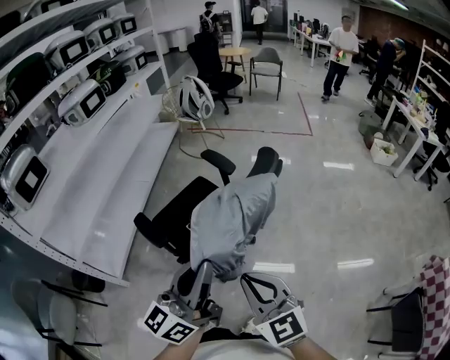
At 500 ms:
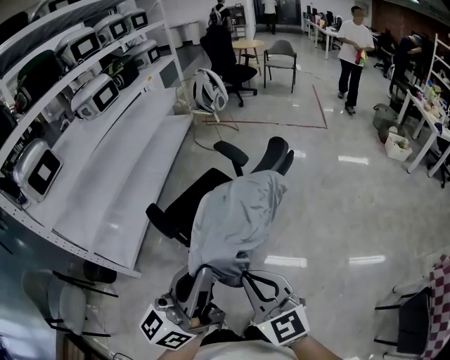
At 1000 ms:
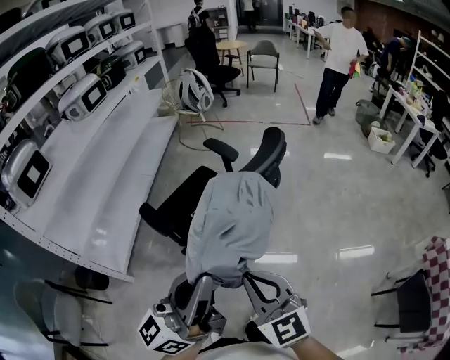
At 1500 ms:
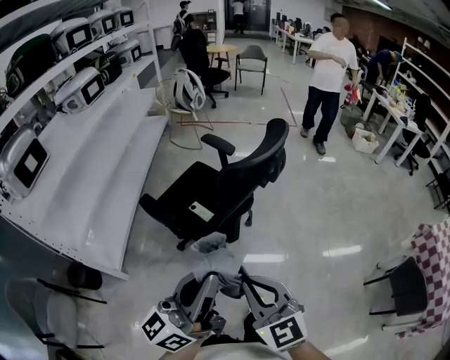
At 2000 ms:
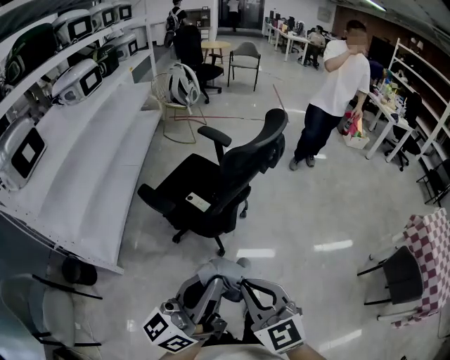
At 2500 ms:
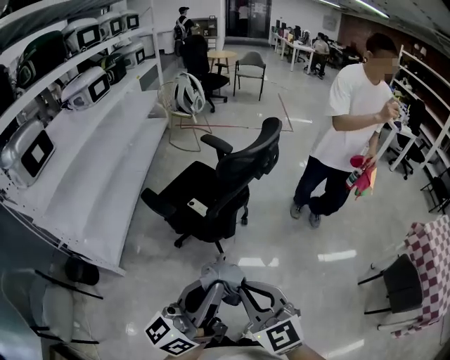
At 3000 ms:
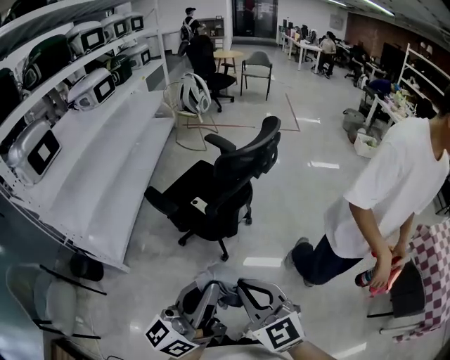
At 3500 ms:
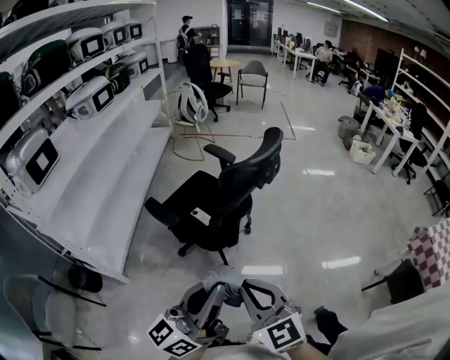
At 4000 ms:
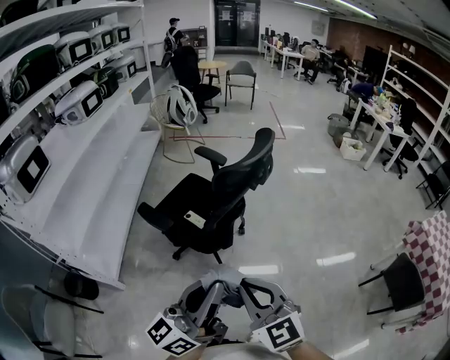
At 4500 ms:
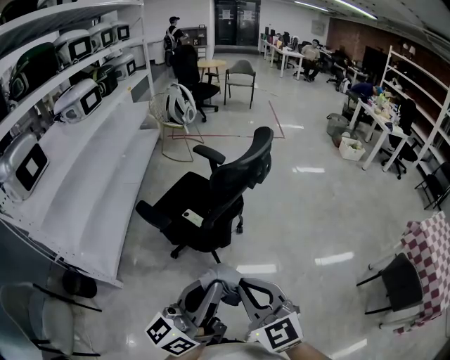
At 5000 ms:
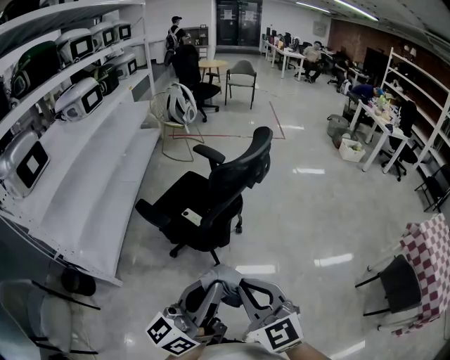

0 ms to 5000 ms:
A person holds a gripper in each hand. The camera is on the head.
0 ms to 2500 ms: The left gripper is displaced backward by some 25 cm. The right gripper travels backward and to the left by some 25 cm.
2500 ms to 5000 ms: The grippers make only small movements.

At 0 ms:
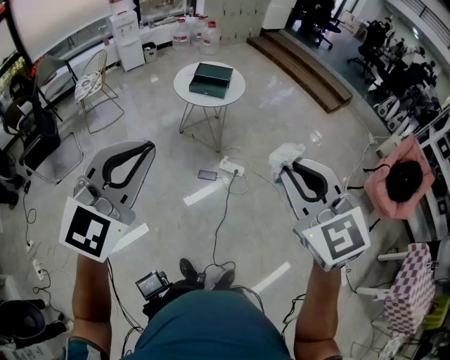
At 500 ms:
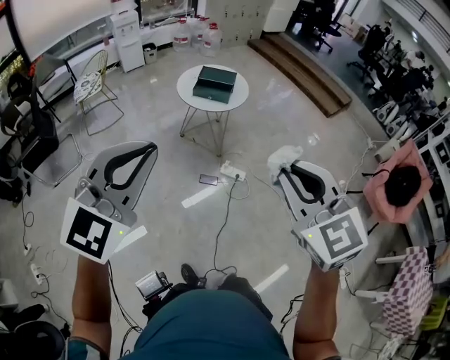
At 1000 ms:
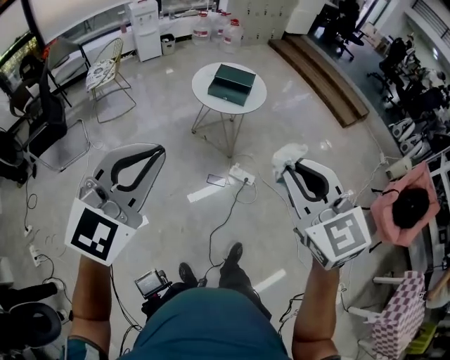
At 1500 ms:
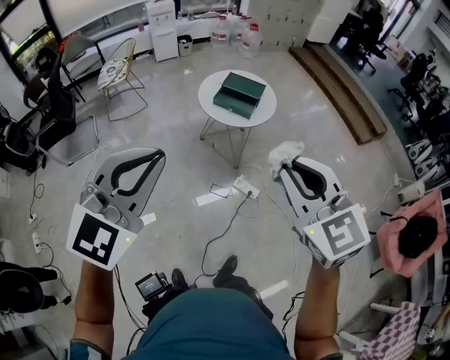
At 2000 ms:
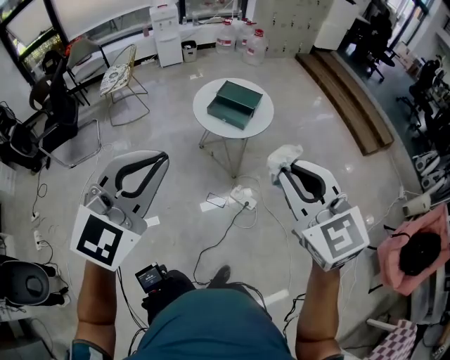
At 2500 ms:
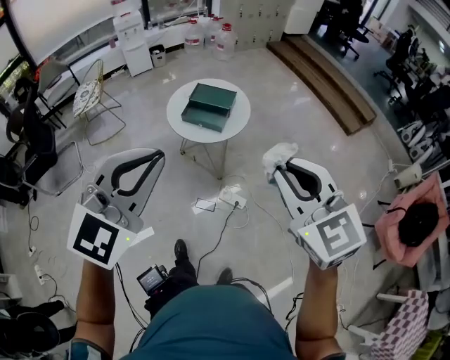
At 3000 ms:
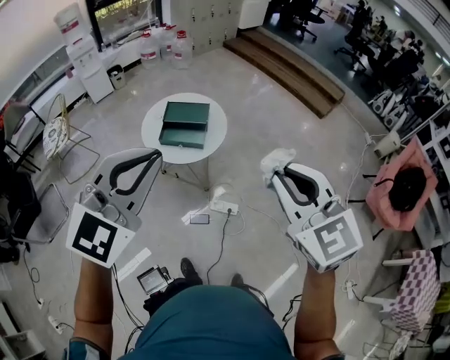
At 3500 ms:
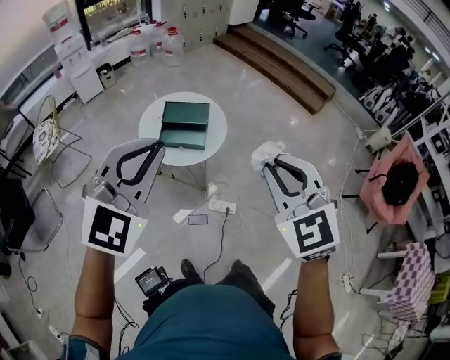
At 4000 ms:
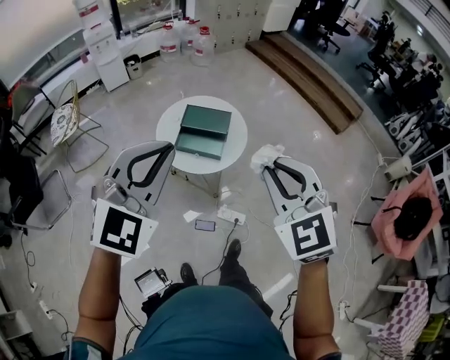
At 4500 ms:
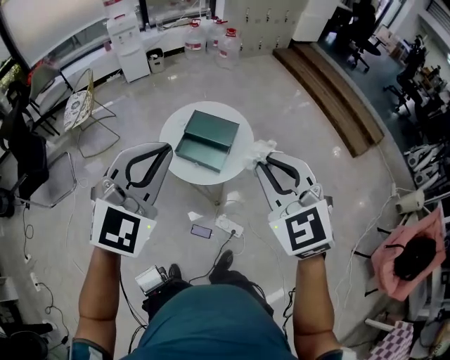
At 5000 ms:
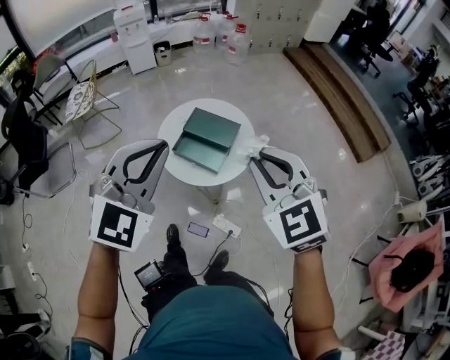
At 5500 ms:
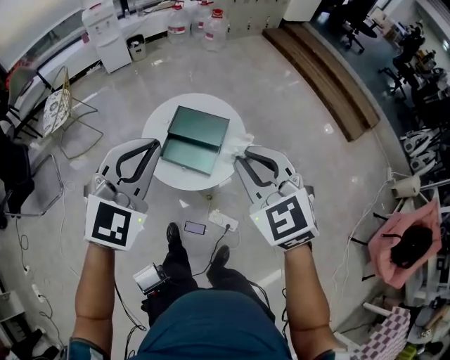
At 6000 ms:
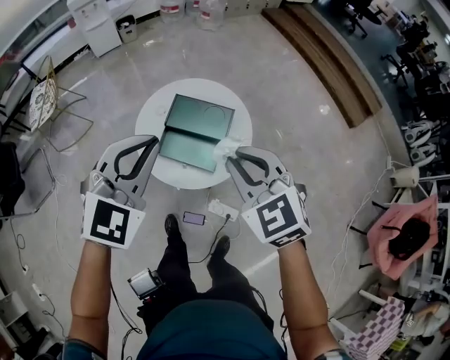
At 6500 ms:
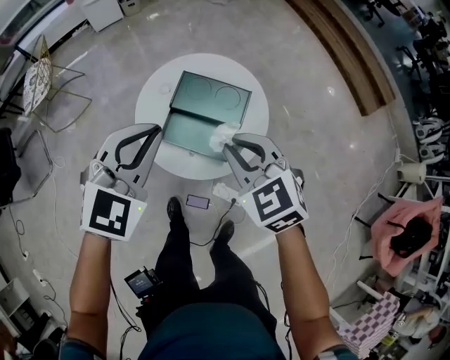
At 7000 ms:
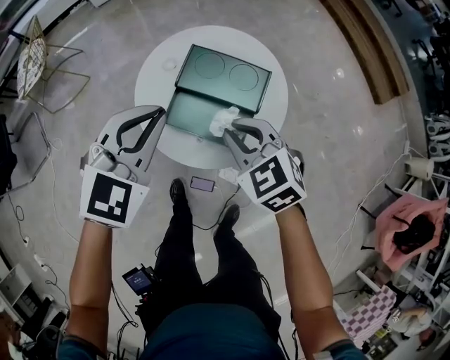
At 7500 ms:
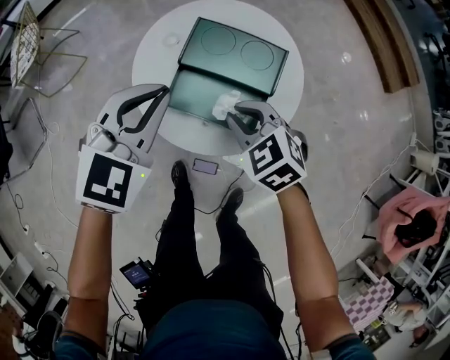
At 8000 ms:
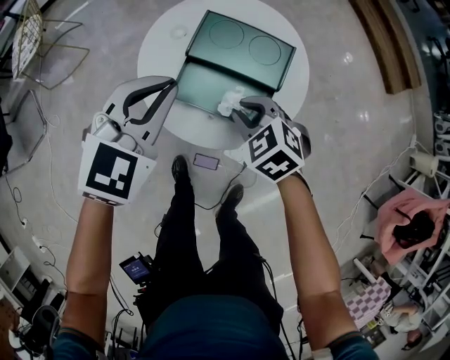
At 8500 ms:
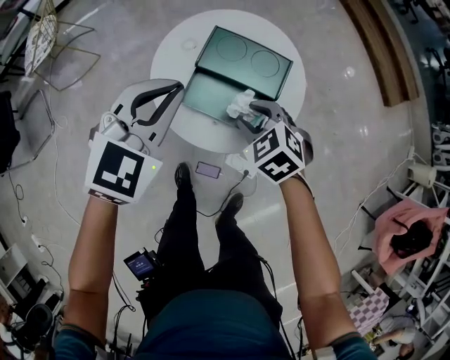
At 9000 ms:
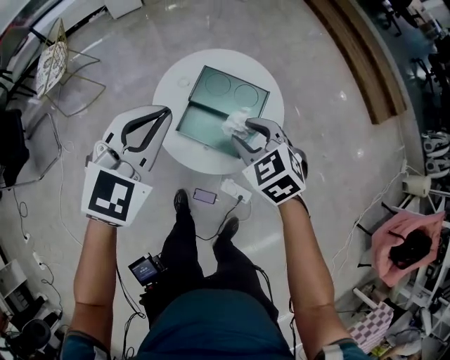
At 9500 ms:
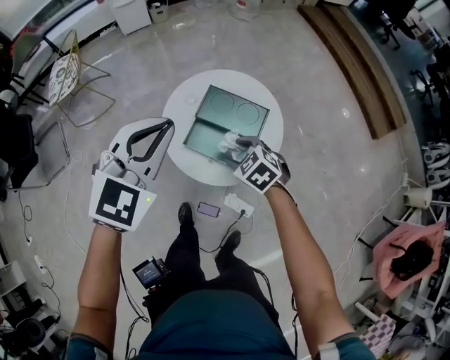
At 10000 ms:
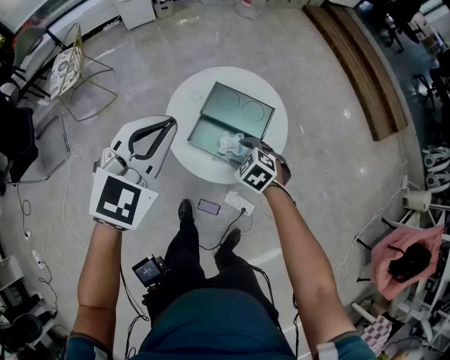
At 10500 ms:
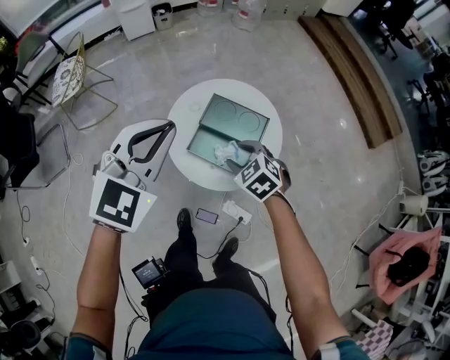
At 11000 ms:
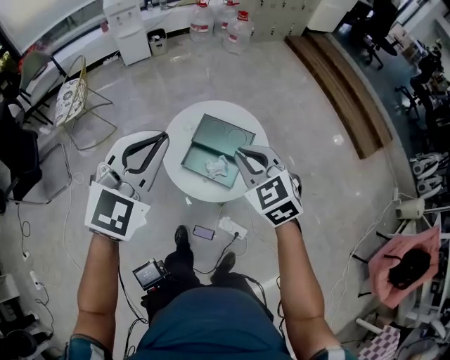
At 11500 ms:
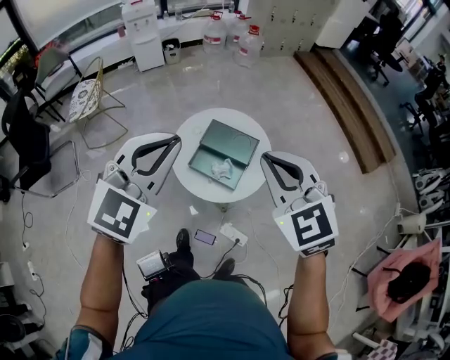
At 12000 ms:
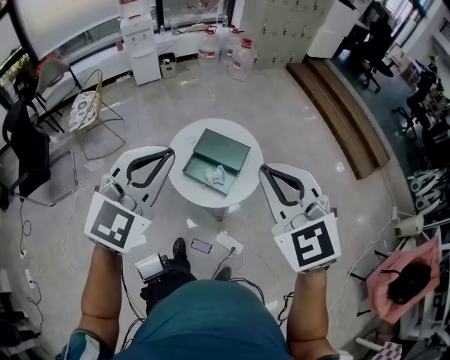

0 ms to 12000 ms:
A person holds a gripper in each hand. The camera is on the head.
0 ms to 2000 ms: The left gripper is displaced forward and to the right by roughly 35 cm. Meanwhile the right gripper goes roughly 40 cm forward.
2000 ms to 4000 ms: The right gripper changes place by approximately 35 cm, and changes its angle by roughly 30 degrees. Meanwhile the left gripper changes place by about 40 cm.
4000 ms to 6000 ms: Both grippers travel together forward and downward, roughly 40 cm.
6000 ms to 8000 ms: The right gripper shifts approximately 40 cm downward, and turns by some 30 degrees. Meanwhile the left gripper goes about 35 cm downward and forward.
8000 ms to 10000 ms: The right gripper heads upward, covering approximately 10 cm, and opens its fingers; the left gripper moves upward, about 25 cm.
10000 ms to 12000 ms: The right gripper heads upward and backward, covering about 50 cm, angles its fingers upward, by approximately 40 degrees, and closes. The left gripper shifts about 30 cm upward and backward.

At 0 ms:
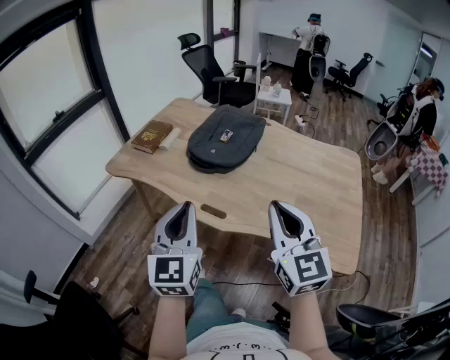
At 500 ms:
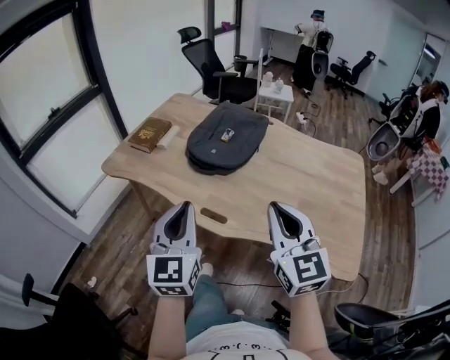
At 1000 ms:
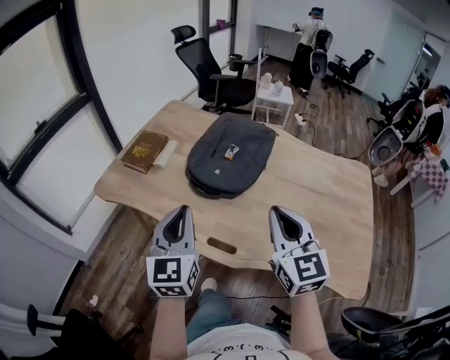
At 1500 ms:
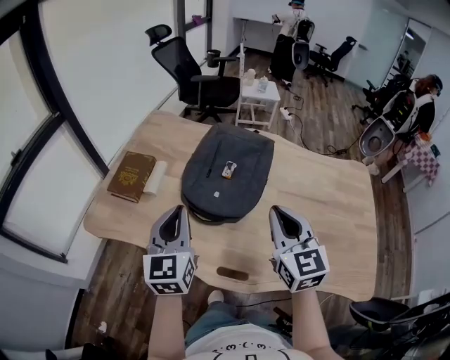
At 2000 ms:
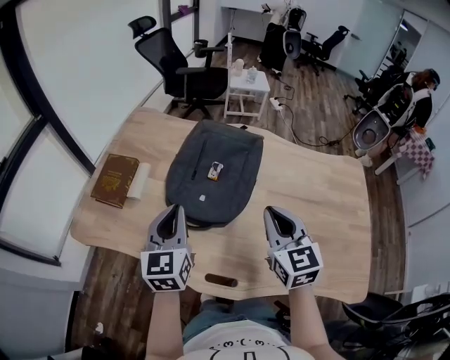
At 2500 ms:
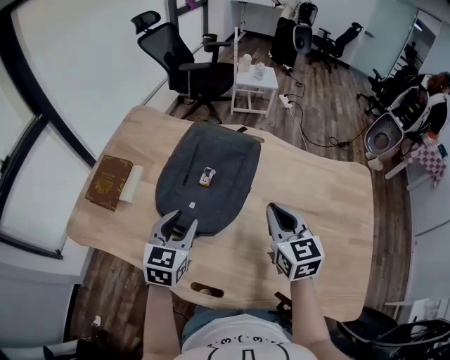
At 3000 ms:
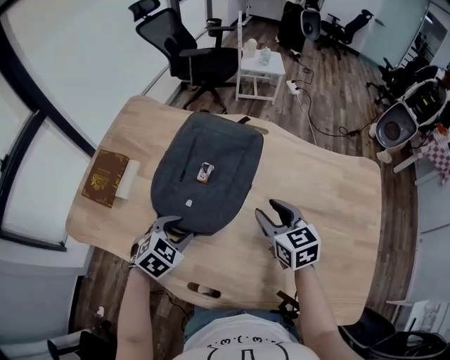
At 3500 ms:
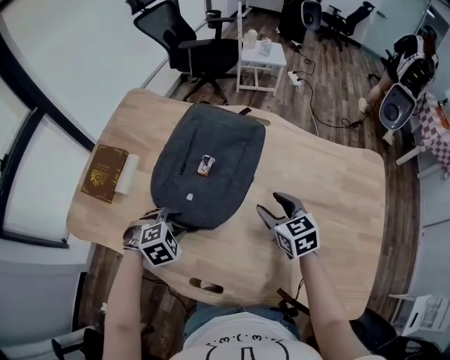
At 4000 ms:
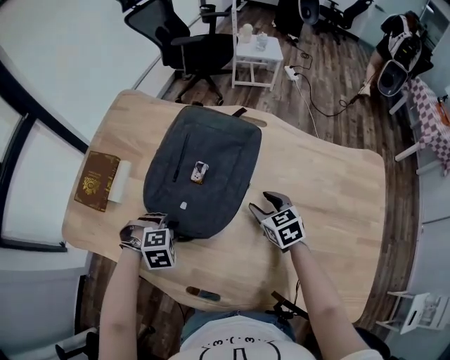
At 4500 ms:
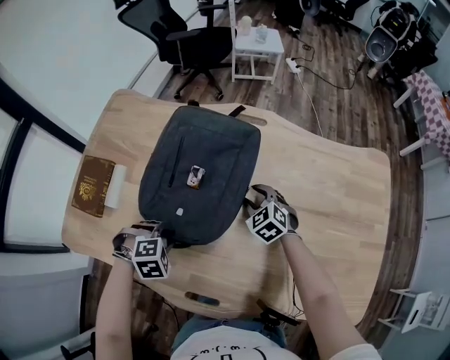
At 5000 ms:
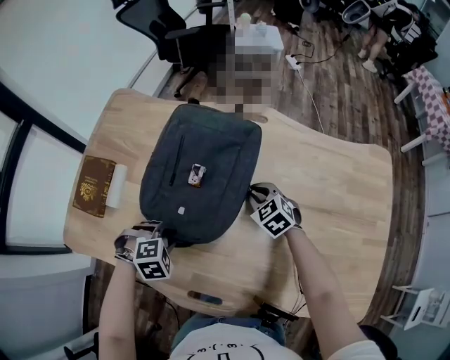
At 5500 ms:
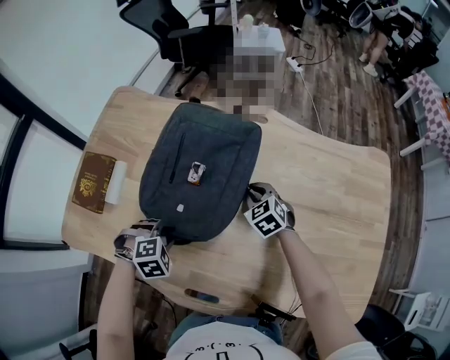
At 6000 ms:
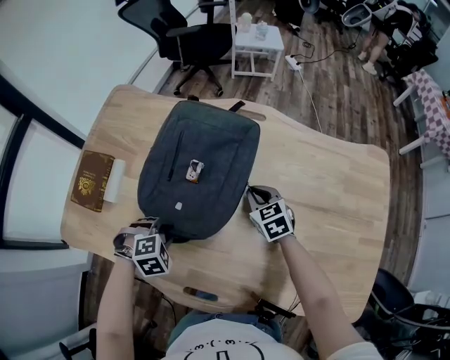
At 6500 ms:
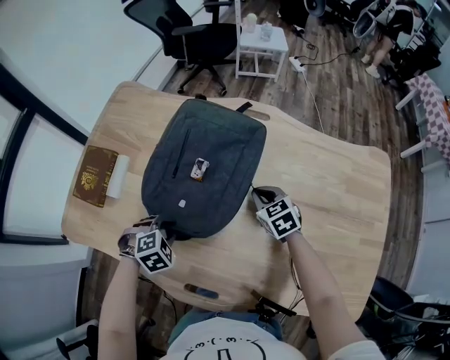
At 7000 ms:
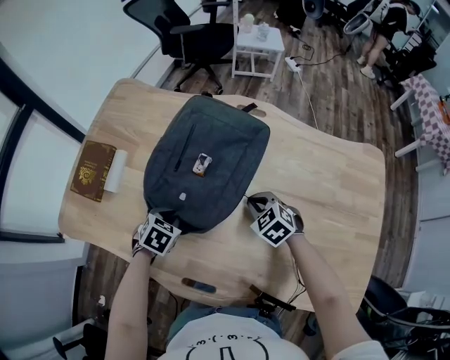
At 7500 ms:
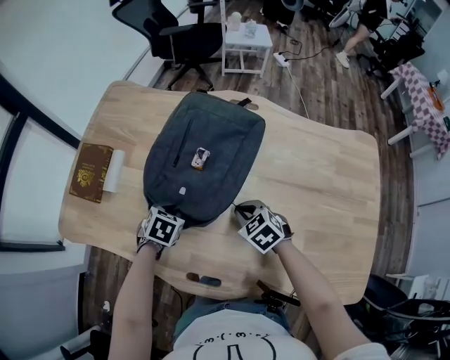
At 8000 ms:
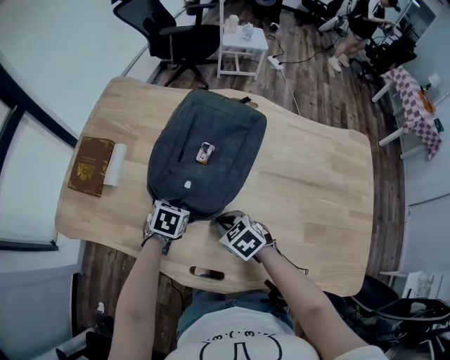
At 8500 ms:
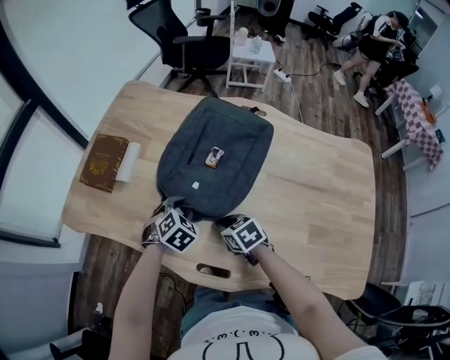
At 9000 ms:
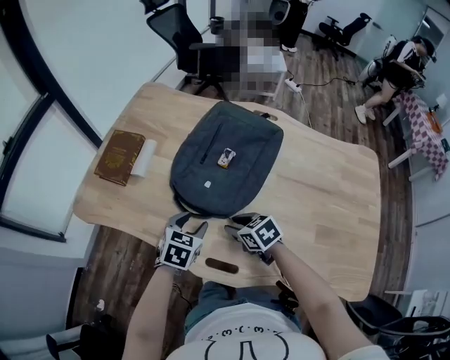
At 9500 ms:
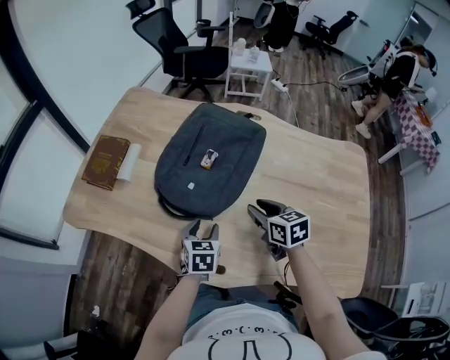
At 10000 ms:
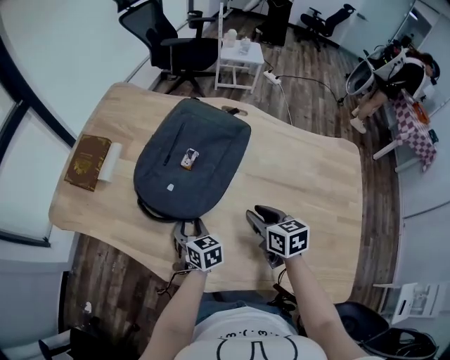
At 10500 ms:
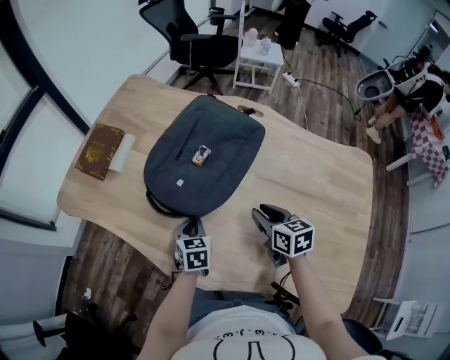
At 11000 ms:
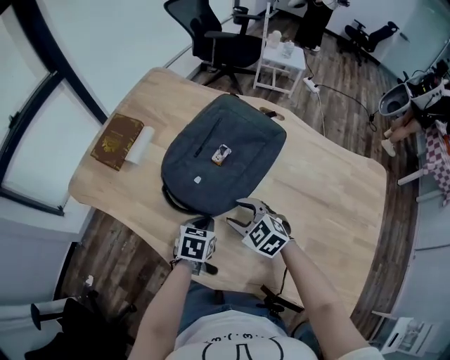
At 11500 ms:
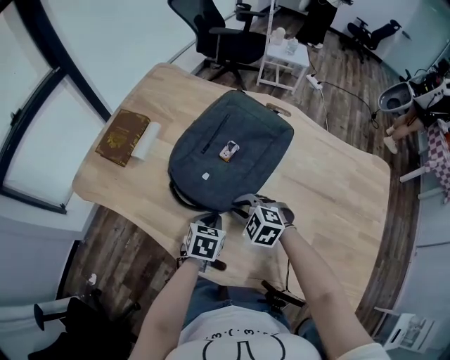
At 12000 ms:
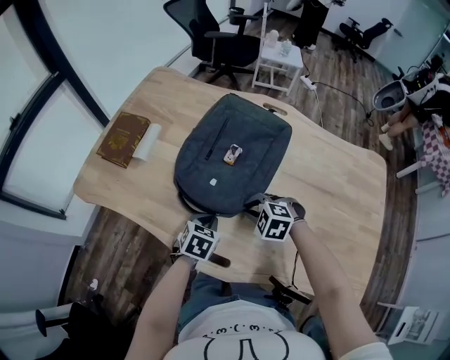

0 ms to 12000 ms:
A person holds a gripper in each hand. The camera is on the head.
0 ms to 2000 ms: The grippers both shift forward by about 35 cm.
2000 ms to 4000 ms: Both grippers move downward, about 25 cm. The left gripper tilts its fingers roughly 70 degrees downward, and opens its fingers. Meanwhile the right gripper rotates about 30 degrees, and opens its fingers.
4000 ms to 6000 ms: The right gripper closes its fingers.
6000 ms to 8000 ms: The left gripper rotates around the line of its fingers by roughly 50 degrees, counterclockwise from behind. Meanwhile the right gripper changes place by approximately 20 cm, and changes its angle by approximately 20 degrees.
8000 ms to 10000 ms: The right gripper travels to the right and upward by roughly 15 cm, and changes its angle by approximately 30 degrees; the left gripper shifts approximately 10 cm backward, swivels roughly 40 degrees, and opens its fingers.
10000 ms to 12000 ms: The left gripper changes its angle by some 30 degrees, and closes its fingers, while the right gripper heads to the left and downward, covering approximately 15 cm, and twists about 70 degrees counterclockwise, seen from behind.
